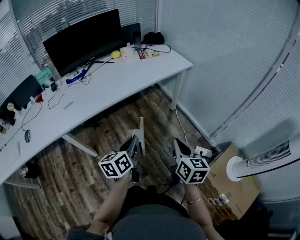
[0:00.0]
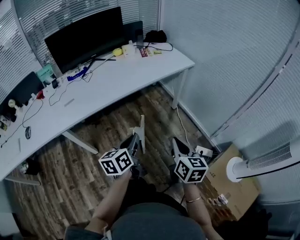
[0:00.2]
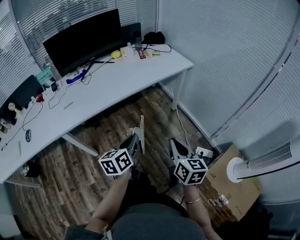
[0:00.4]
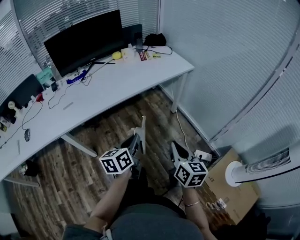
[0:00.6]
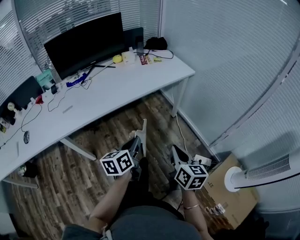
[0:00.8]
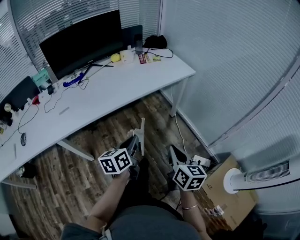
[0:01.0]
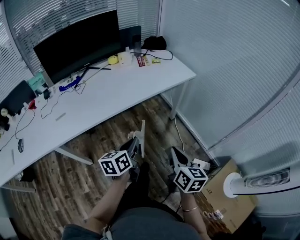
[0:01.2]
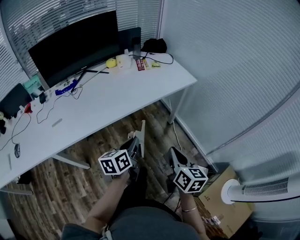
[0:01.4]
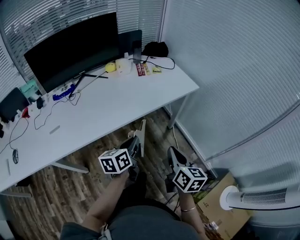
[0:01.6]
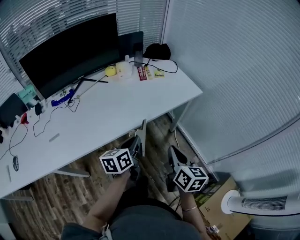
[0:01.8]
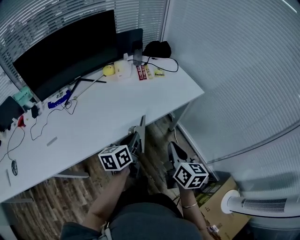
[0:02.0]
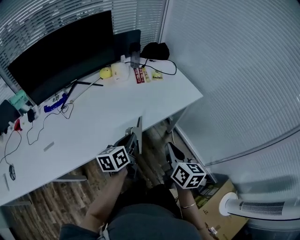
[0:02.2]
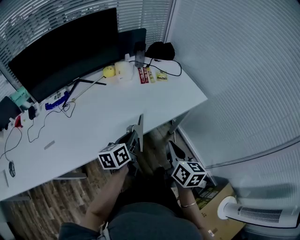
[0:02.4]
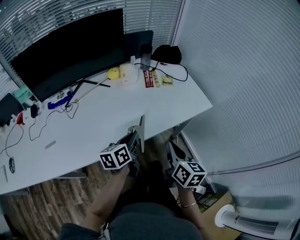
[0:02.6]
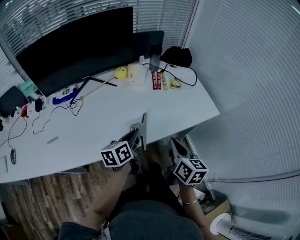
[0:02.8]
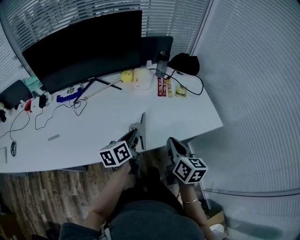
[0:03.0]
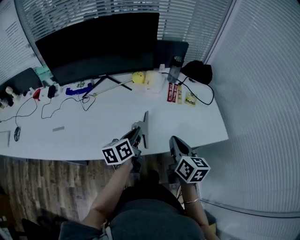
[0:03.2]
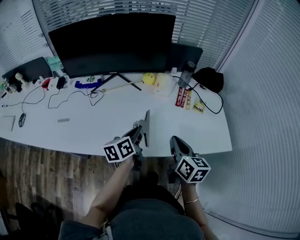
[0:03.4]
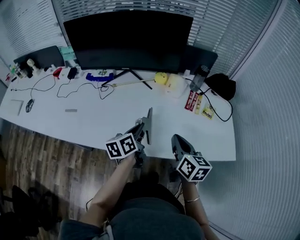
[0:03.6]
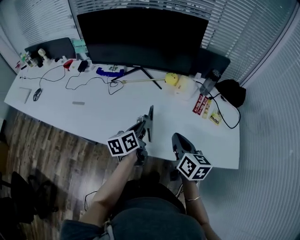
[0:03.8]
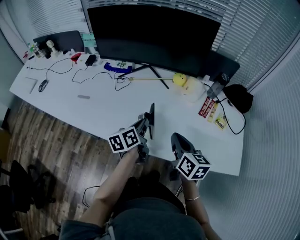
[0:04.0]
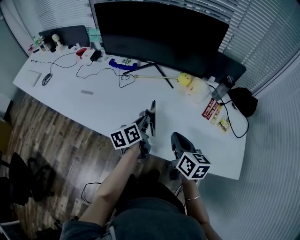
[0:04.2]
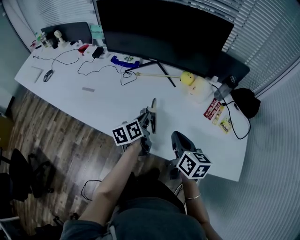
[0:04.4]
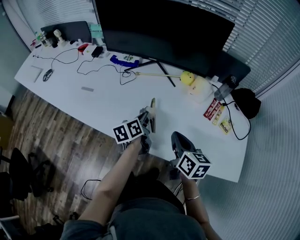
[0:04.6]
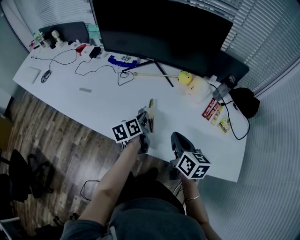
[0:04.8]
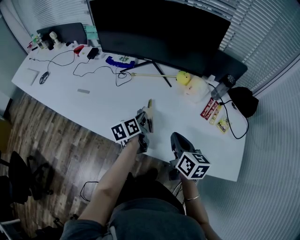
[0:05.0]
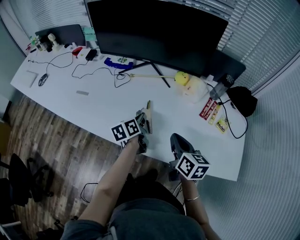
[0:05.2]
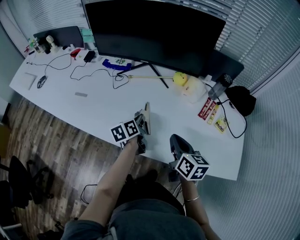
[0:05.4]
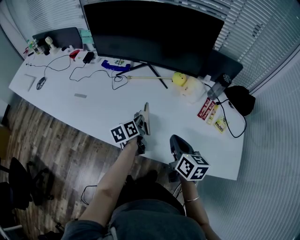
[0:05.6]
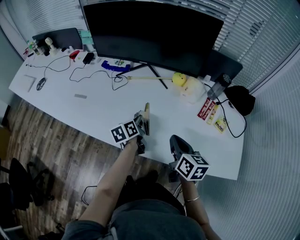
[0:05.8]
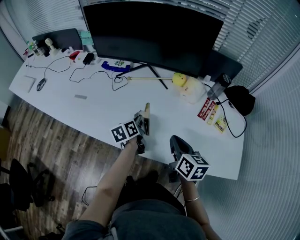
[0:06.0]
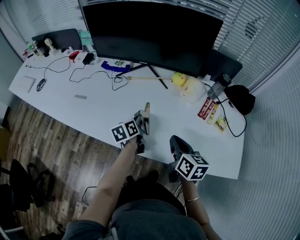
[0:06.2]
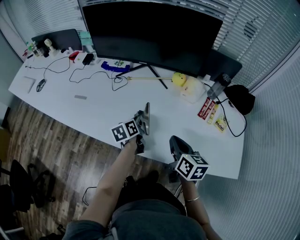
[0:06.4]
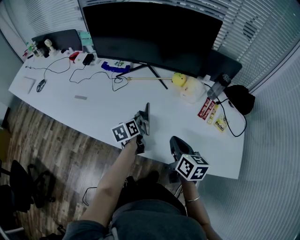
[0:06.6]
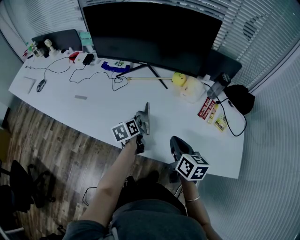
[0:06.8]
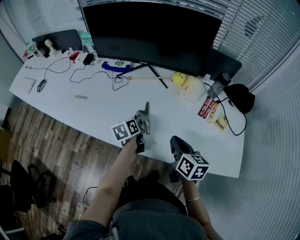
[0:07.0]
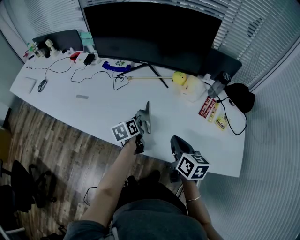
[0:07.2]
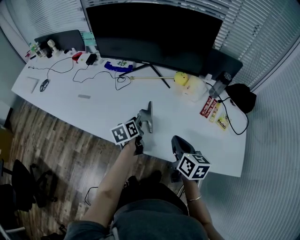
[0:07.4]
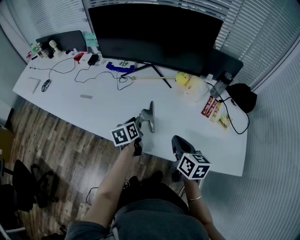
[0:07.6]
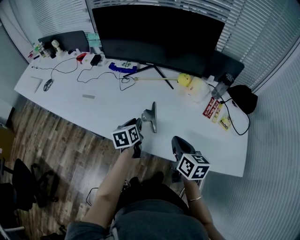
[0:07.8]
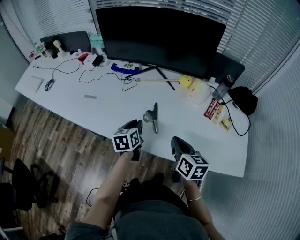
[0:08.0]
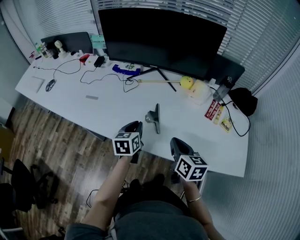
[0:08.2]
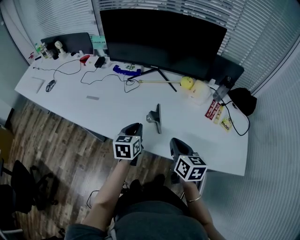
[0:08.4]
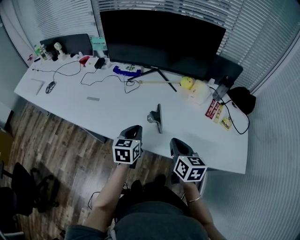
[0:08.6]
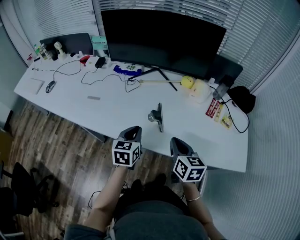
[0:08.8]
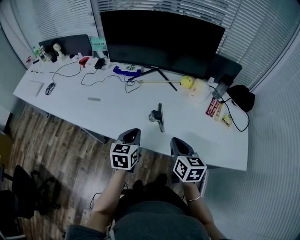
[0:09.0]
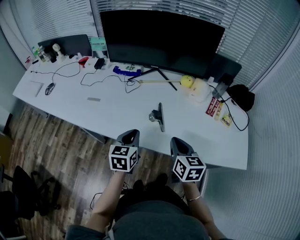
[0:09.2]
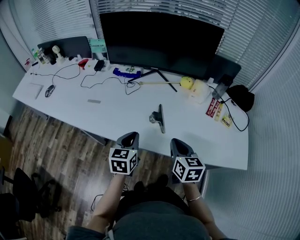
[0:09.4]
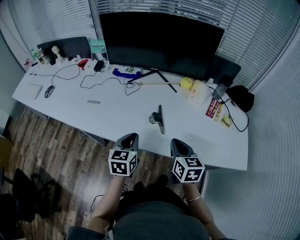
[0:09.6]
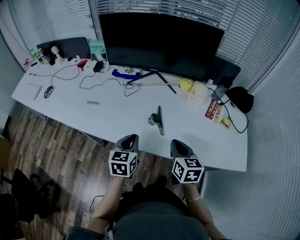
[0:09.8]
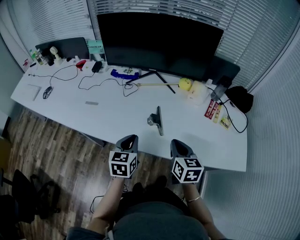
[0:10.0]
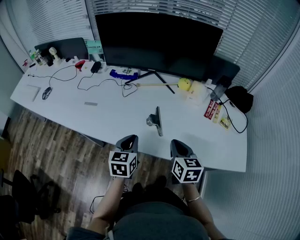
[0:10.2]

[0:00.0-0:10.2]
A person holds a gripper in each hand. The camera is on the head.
0:00.0 to 0:01.4: Both grippers move forward, approximately 15 cm.
0:01.4 to 0:03.0: Both grippers move forward, approximately 30 cm.
0:03.0 to 0:04.4: The right gripper shifts by some 15 cm, and swivels roughly 40 degrees. The left gripper shifts by about 15 cm, and swivels about 40 degrees.
0:04.4 to 0:05.8: The left gripper is displaced downward by about 5 cm.
0:05.8 to 0:07.2: The grippers stay close to where they were, moving slightly.
0:07.2 to 0:08.8: The left gripper shifts approximately 15 cm backward, upward and to the left, and swivels approximately 40 degrees, while the right gripper heads to the left, covering some 5 cm.
0:08.8 to 0:10.2: There are only small adjustments of the grippers.

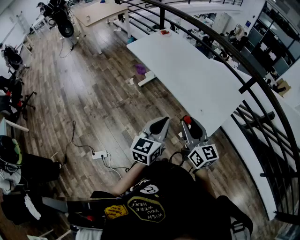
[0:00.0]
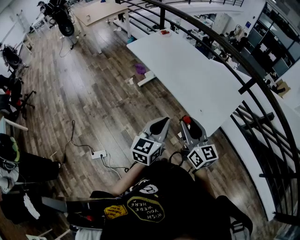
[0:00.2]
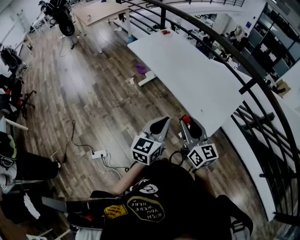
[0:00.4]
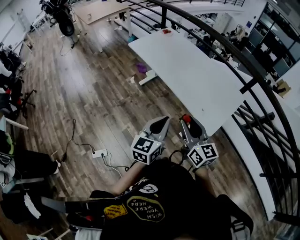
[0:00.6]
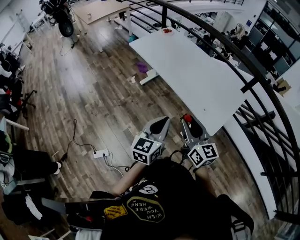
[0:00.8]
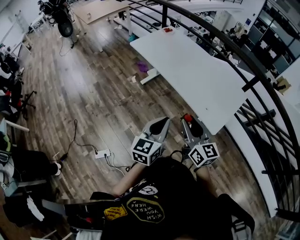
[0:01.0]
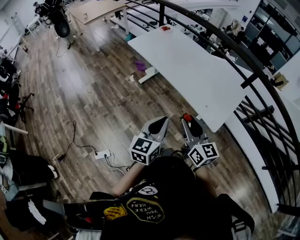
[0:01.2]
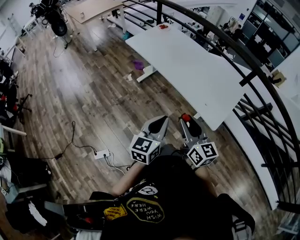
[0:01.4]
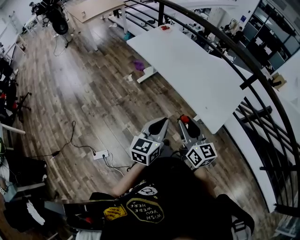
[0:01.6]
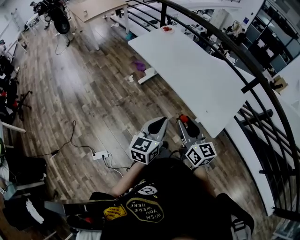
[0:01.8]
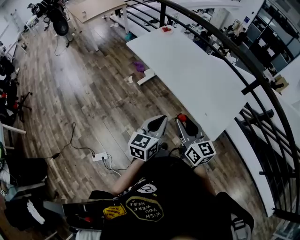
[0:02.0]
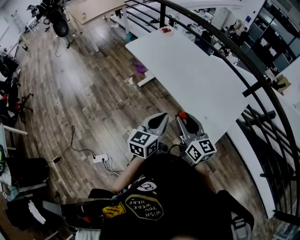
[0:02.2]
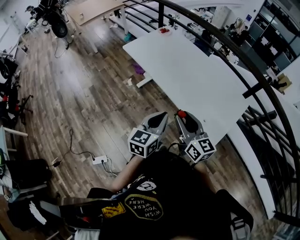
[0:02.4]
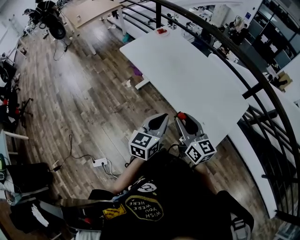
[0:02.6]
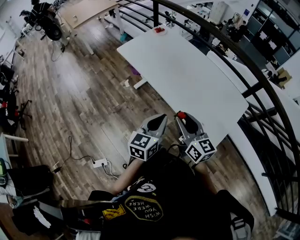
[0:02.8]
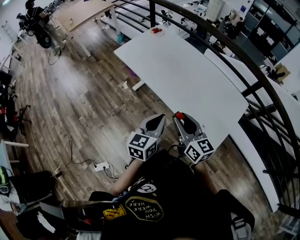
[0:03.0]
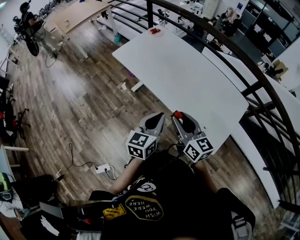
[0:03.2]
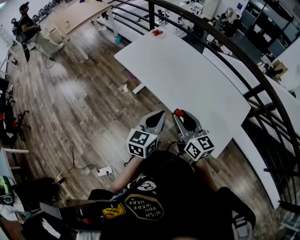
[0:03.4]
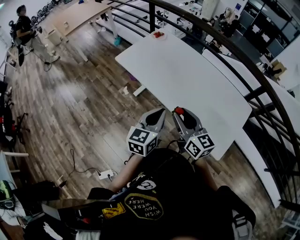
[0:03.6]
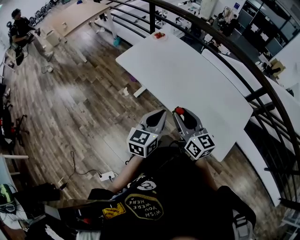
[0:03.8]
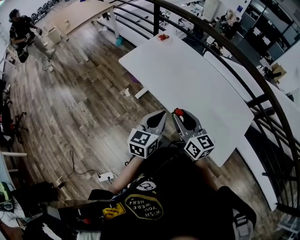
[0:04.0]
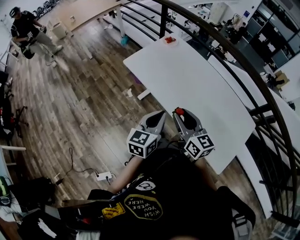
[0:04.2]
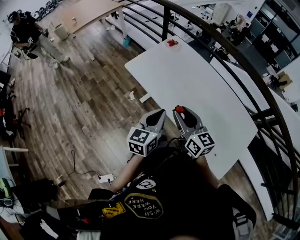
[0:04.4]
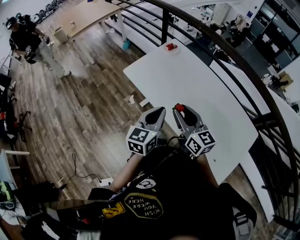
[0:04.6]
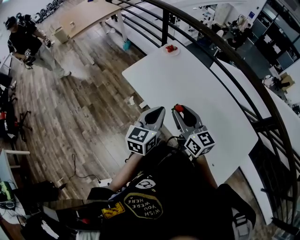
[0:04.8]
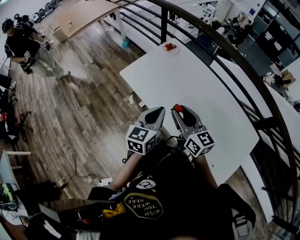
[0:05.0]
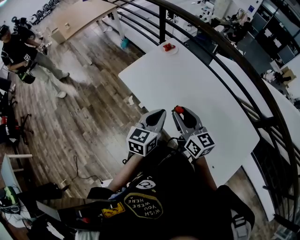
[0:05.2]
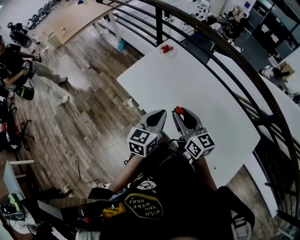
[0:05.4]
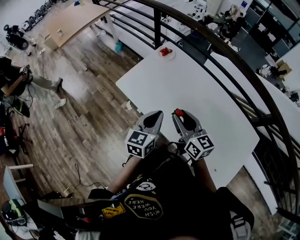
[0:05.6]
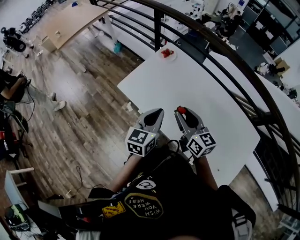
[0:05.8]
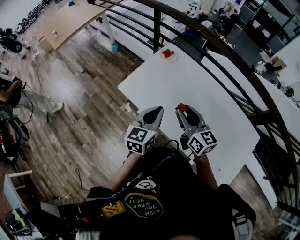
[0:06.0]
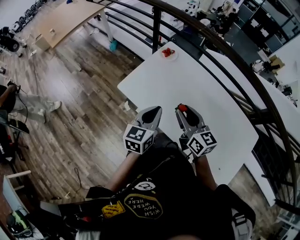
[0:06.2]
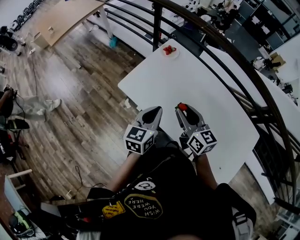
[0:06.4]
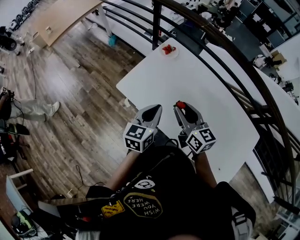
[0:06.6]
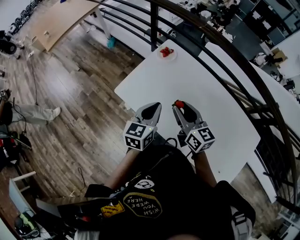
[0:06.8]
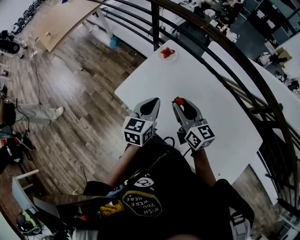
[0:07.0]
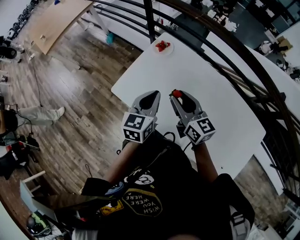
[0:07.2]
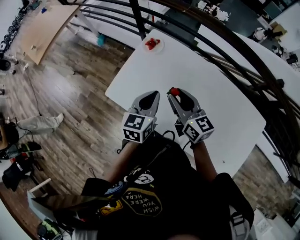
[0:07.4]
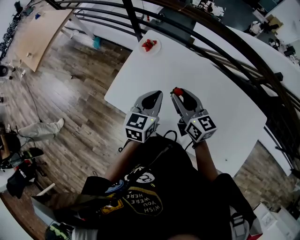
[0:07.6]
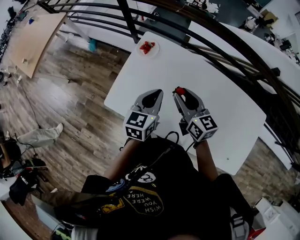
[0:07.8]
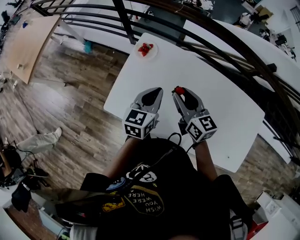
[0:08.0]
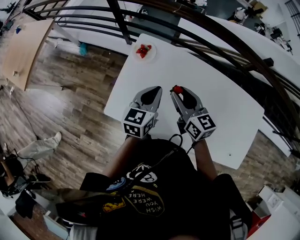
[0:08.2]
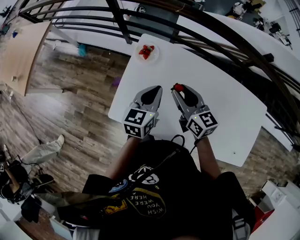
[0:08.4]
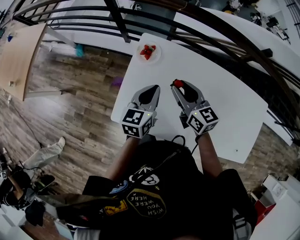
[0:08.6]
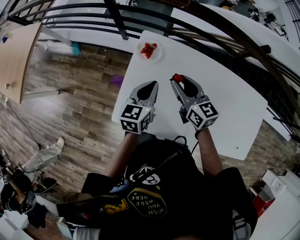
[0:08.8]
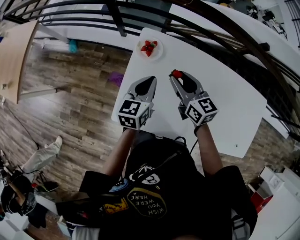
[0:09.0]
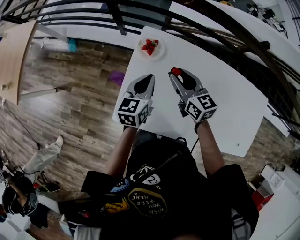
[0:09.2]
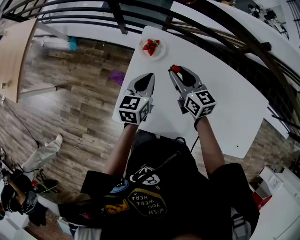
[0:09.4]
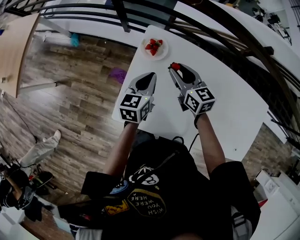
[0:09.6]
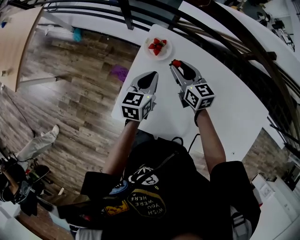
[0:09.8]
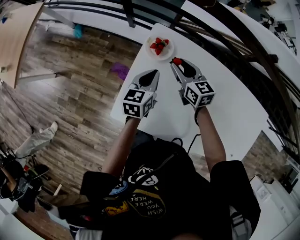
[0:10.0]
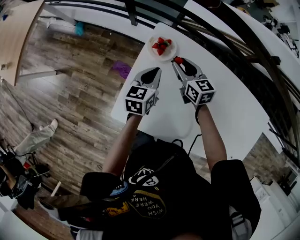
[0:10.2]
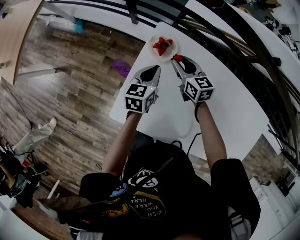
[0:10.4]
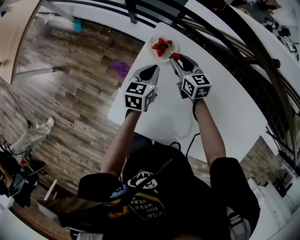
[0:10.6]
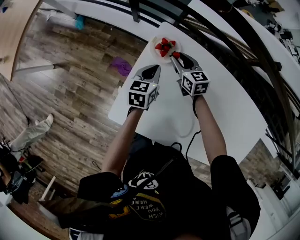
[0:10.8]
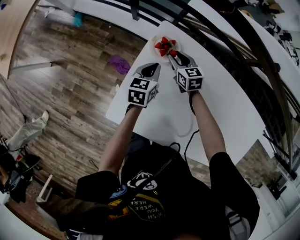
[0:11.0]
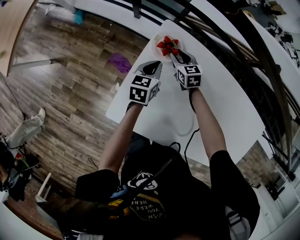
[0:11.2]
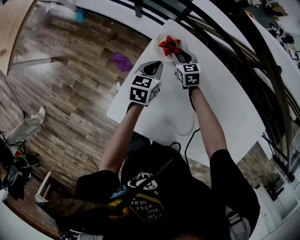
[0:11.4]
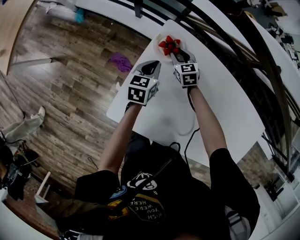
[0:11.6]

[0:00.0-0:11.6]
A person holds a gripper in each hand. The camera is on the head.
0:00.0 to 0:01.4: Both grippers travel together to the left, approximately 5 cm.
0:01.4 to 0:02.8: The grippers both shift forward by some 20 cm.
0:02.8 to 0:04.4: Both grippers move forward and to the left, some 30 cm.
0:04.4 to 0:05.8: Both grippers travel together forward, roughly 20 cm.
0:05.8 to 0:07.2: Both grippers move forward, some 15 cm.
0:07.2 to 0:08.8: The grippers both shift forward and downward by approximately 20 cm. The left gripper swivels roughly 20 degrees. Meanwhile the right gripper changes its angle by about 20 degrees.
0:08.8 to 0:10.2: The two grippers go some 15 cm downward and forward.
0:10.2 to 0:11.6: The right gripper moves downward and forward, roughly 15 cm, and changes its angle by some 20 degrees. Meanwhile the left gripper moves downward, some 10 cm.

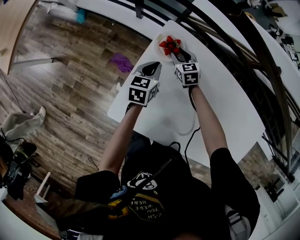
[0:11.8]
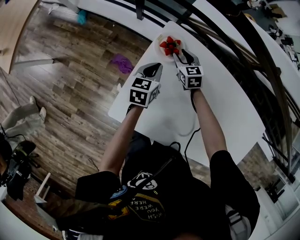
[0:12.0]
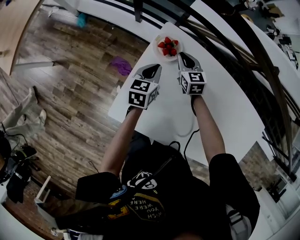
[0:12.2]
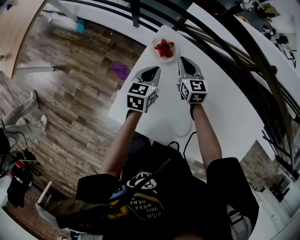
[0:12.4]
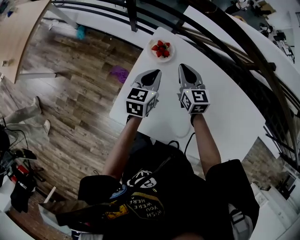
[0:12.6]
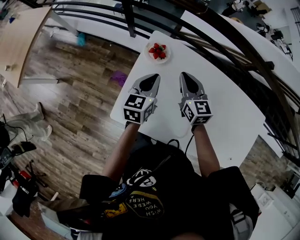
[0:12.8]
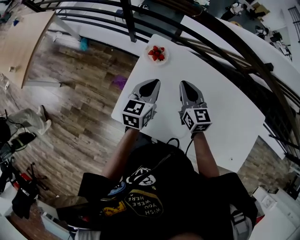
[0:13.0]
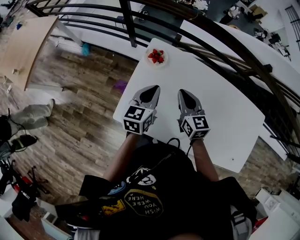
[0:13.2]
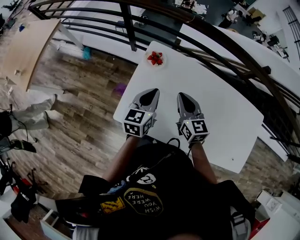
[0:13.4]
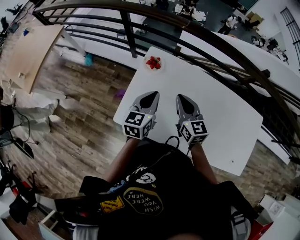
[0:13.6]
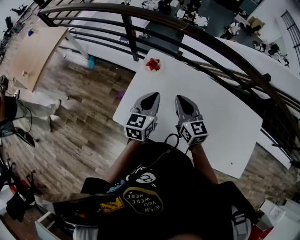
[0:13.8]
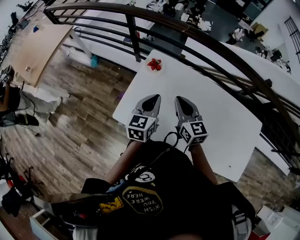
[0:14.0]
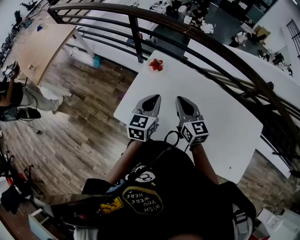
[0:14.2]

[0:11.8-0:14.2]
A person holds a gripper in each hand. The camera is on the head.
0:11.8 to 0:13.0: The left gripper heads upward and backward, covering some 20 cm; the right gripper is displaced upward and backward by some 30 cm, changes its angle by about 30 degrees, and closes its fingers.
0:13.0 to 0:14.2: The grippers both shift backward and upward by roughly 15 cm.
